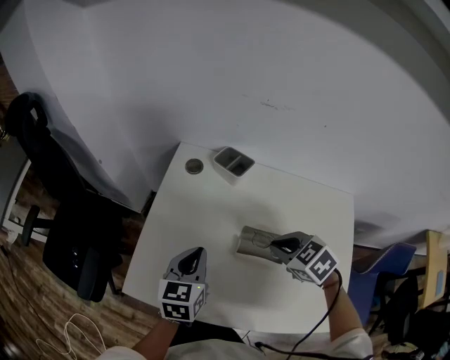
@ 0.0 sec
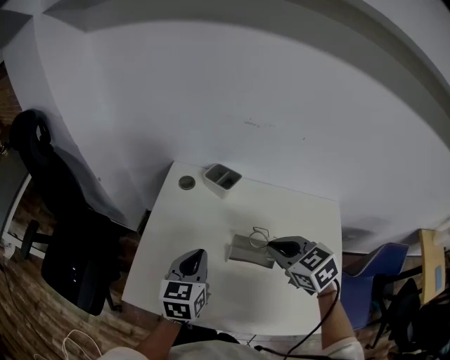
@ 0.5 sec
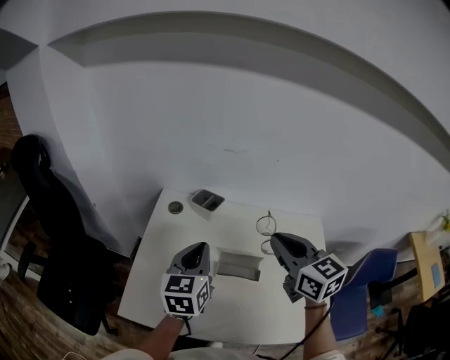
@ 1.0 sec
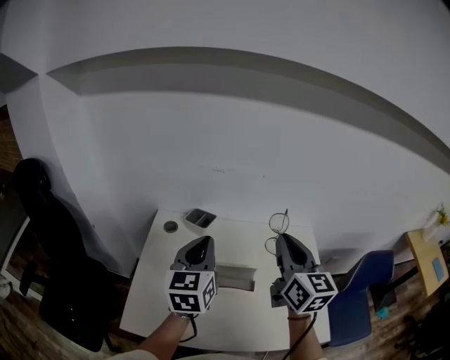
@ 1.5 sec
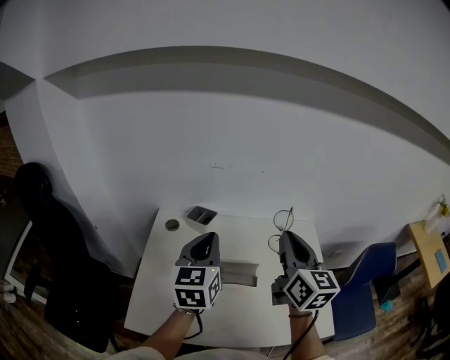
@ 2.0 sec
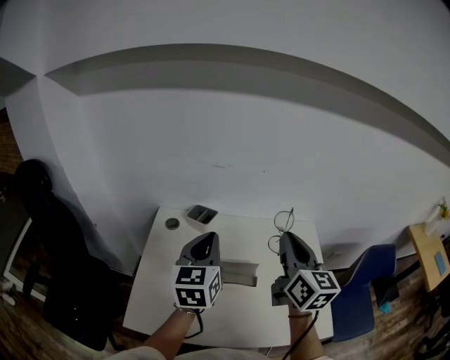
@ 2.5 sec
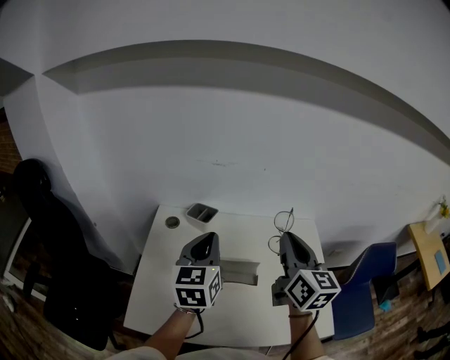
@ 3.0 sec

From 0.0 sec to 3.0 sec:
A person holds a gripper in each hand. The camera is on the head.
From 0.0 sec to 1.5 sec: The grippers both shift upward by some 20 cm. The right gripper points its fingers roughly 60 degrees further upward. The left gripper turns by about 20 degrees.
From 1.5 sec to 3.0 sec: The grippers make only small movements.

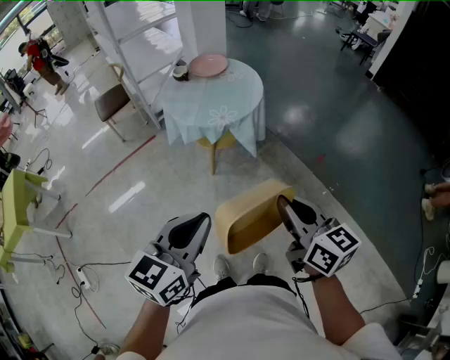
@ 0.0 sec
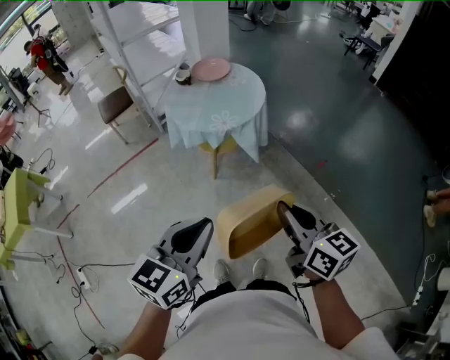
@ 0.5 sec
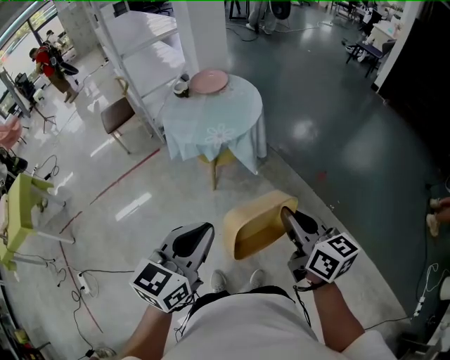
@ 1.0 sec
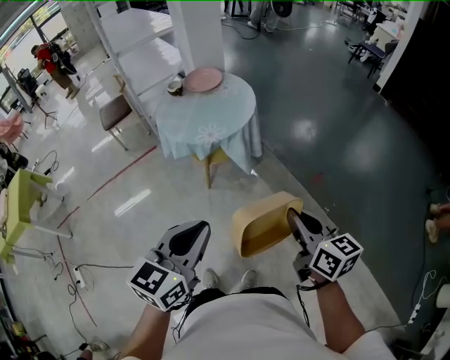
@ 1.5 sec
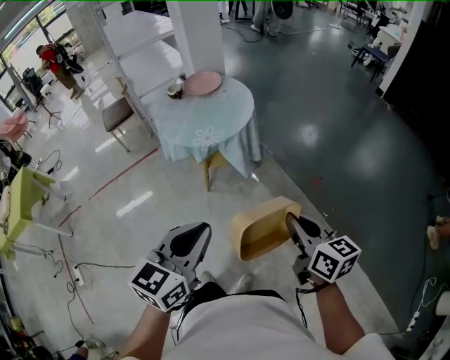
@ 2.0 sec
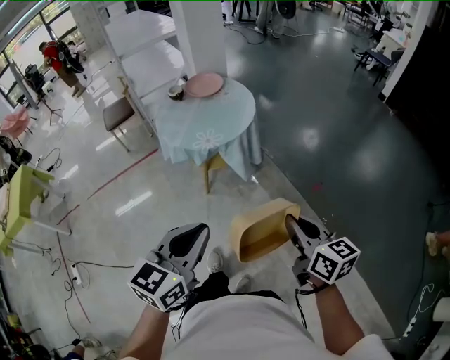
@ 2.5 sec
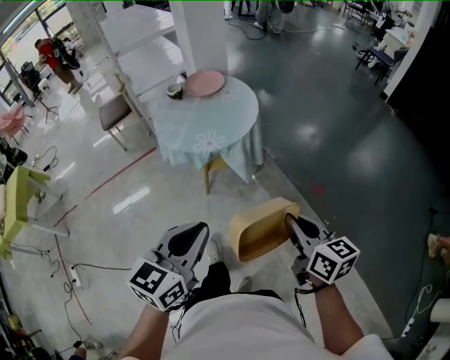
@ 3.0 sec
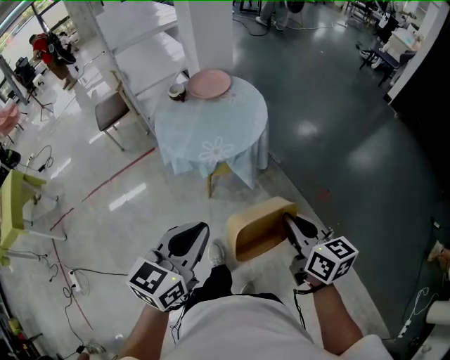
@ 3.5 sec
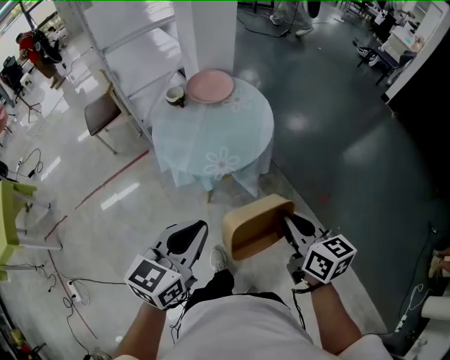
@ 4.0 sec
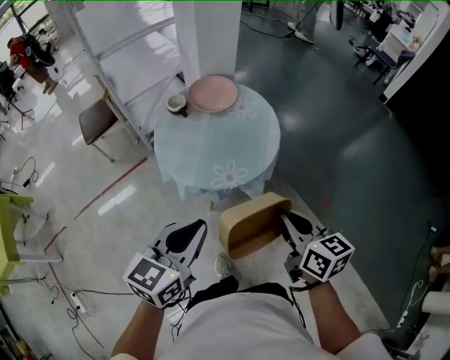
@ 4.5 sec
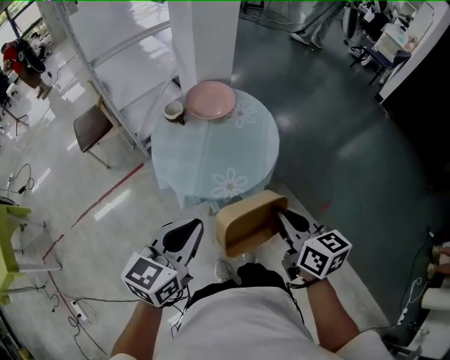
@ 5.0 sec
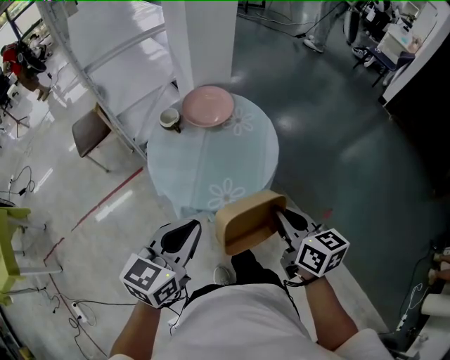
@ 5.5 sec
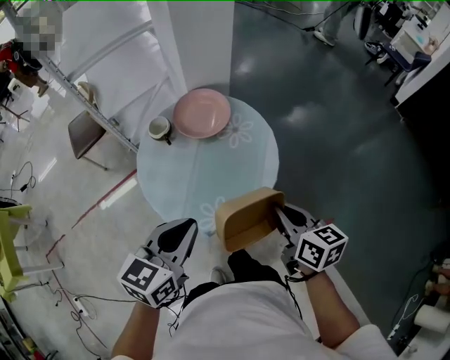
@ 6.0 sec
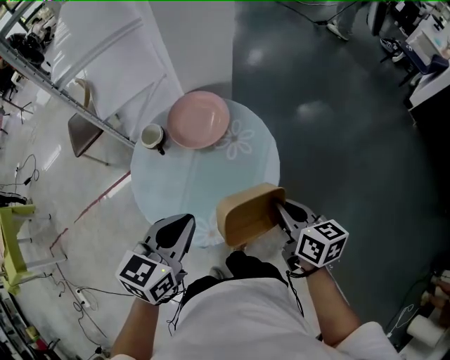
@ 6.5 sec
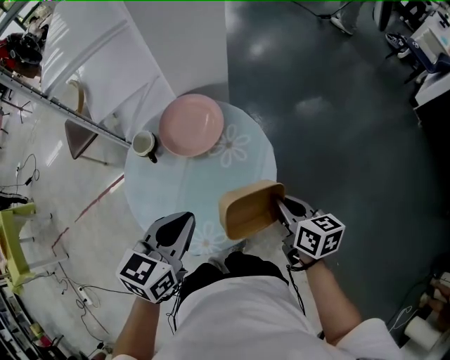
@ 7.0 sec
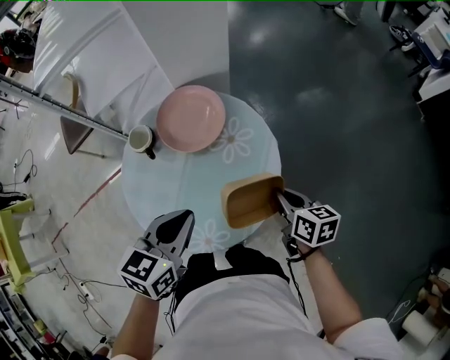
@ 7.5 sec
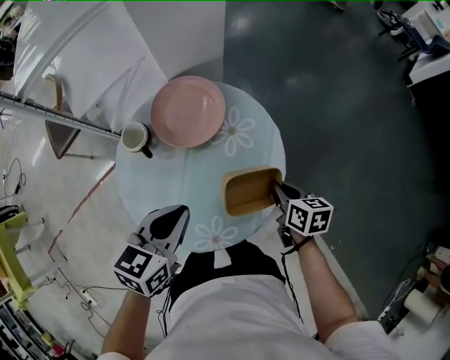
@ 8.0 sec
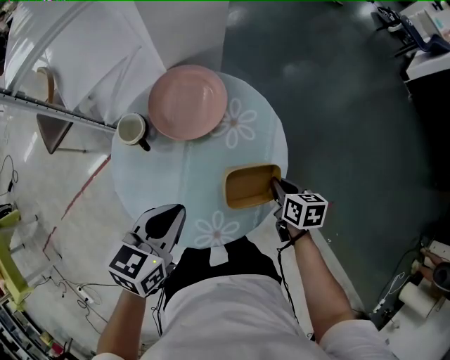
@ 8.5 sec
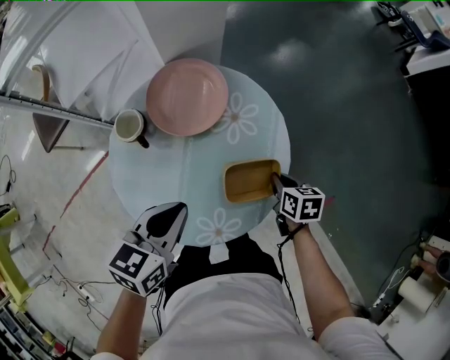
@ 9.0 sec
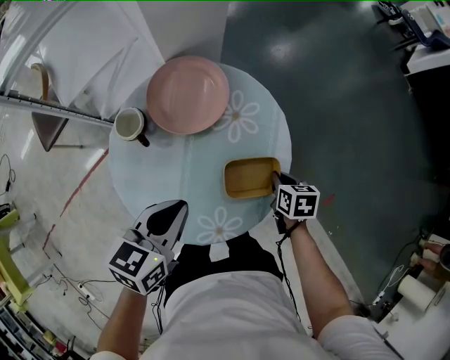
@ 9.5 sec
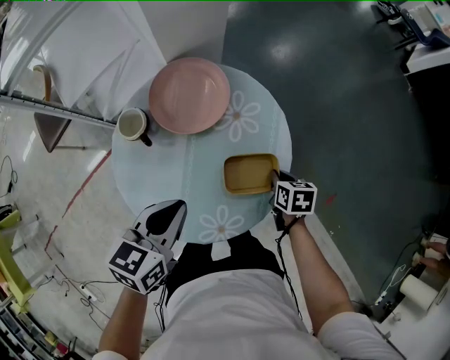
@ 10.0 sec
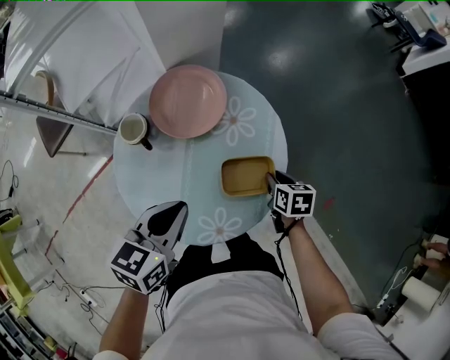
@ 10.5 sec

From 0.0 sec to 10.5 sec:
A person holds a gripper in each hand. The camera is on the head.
From 0.0 sec to 2.0 sec: Both grippers move to the right, some 15 cm.
From 2.0 sec to 4.0 sec: Both grippers move forward and to the left, some 30 cm.
From 4.0 sec to 6.5 sec: The grippers both shift forward by some 35 cm.
From 6.5 sec to 8.5 sec: The left gripper is displaced downward, forward and to the left by roughly 15 cm, while the right gripper heads downward, covering some 20 cm, and rotates some 30 degrees.
From 8.5 sec to 10.5 sec: There are only small adjustments of the grippers.

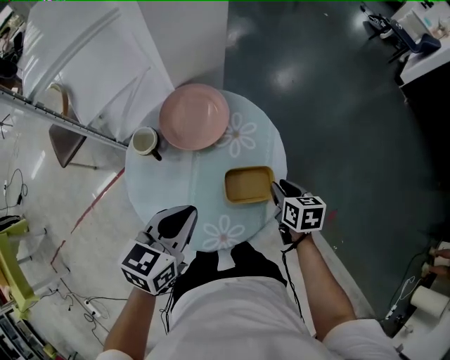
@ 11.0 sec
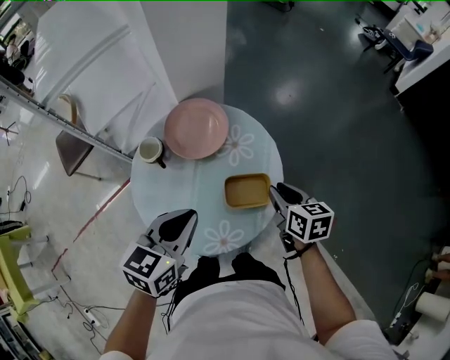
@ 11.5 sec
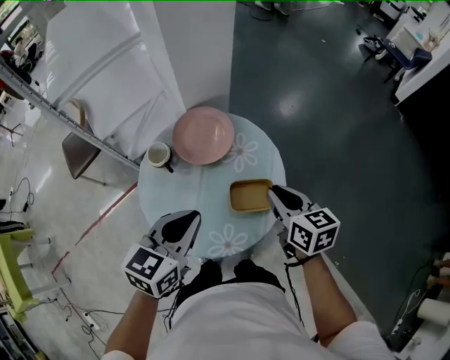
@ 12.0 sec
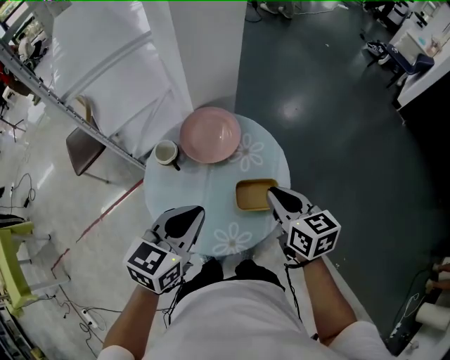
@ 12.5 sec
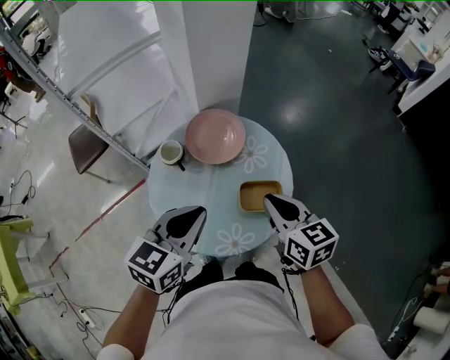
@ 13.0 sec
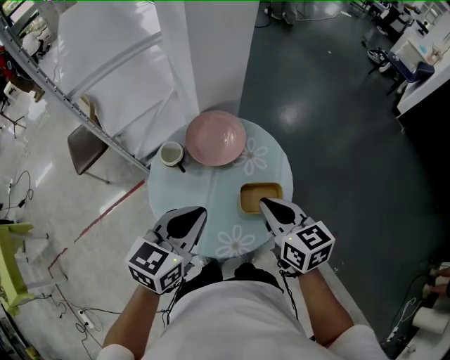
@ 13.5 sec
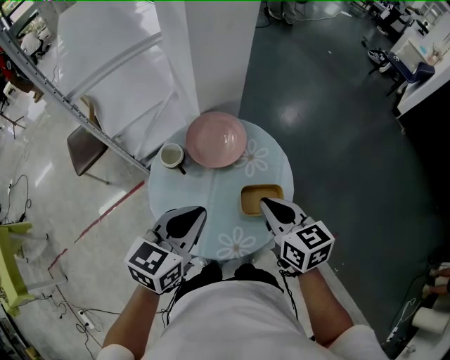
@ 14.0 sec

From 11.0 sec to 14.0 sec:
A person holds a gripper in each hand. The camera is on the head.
From 11.0 sec to 12.5 sec: The left gripper is displaced upward by some 5 cm. The right gripper goes approximately 20 cm upward and to the left, and rotates about 30 degrees.
From 12.5 sec to 14.0 sec: The right gripper moves some 5 cm.

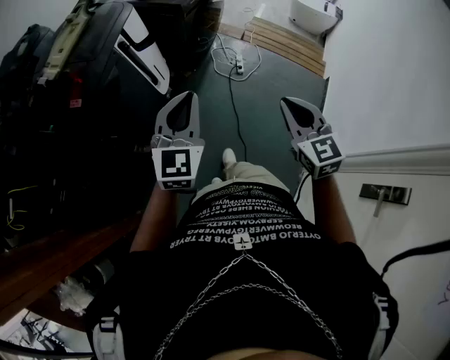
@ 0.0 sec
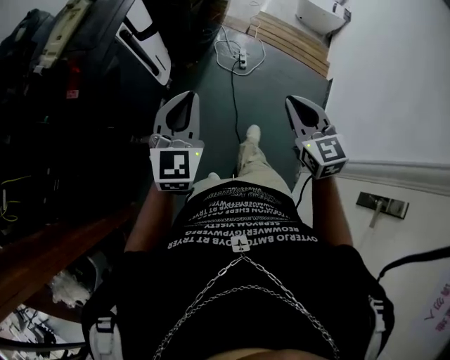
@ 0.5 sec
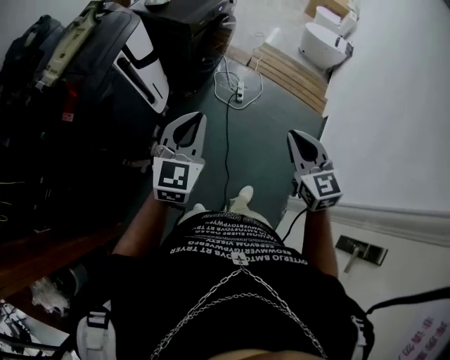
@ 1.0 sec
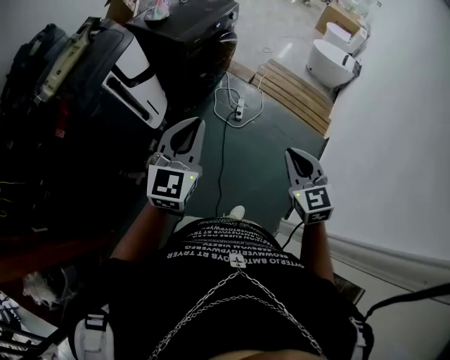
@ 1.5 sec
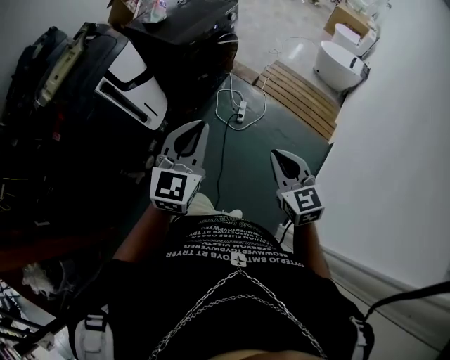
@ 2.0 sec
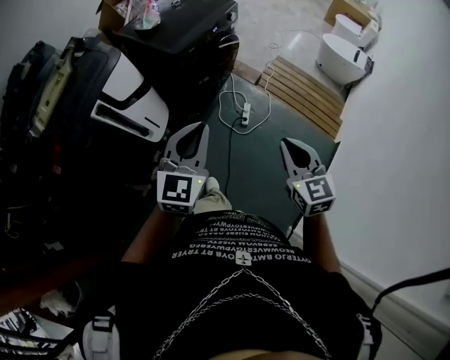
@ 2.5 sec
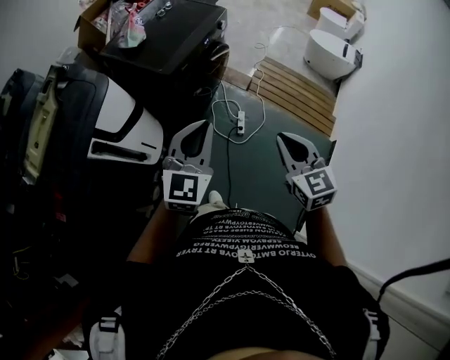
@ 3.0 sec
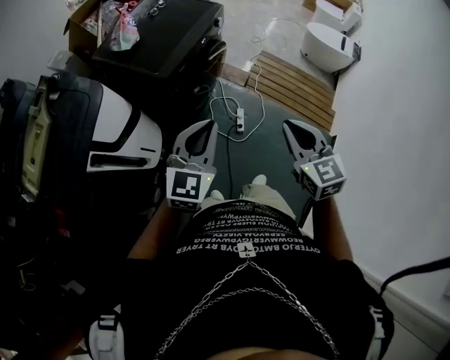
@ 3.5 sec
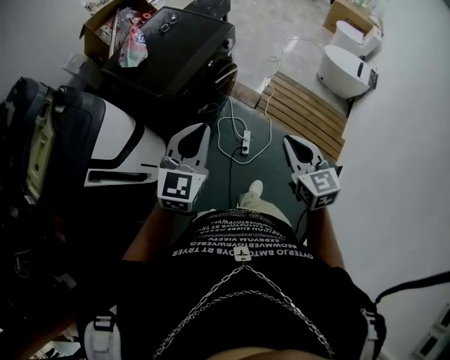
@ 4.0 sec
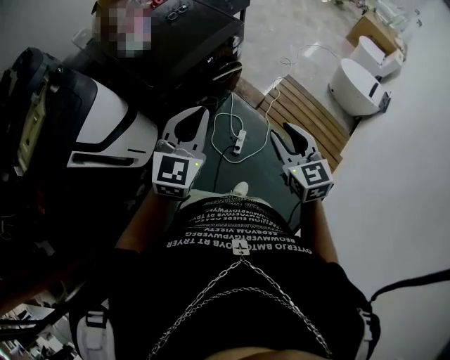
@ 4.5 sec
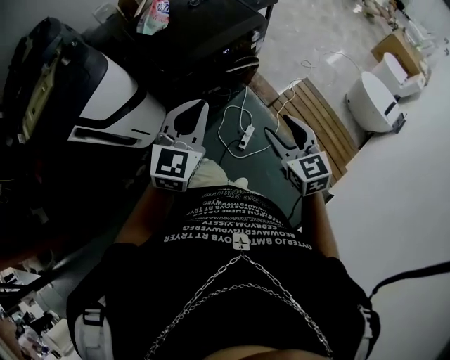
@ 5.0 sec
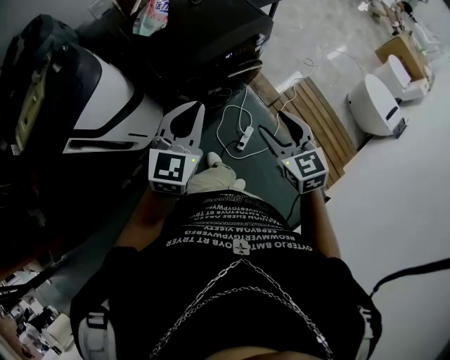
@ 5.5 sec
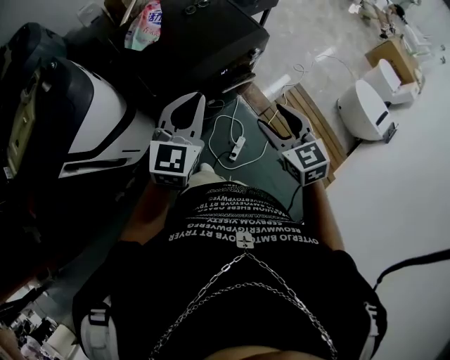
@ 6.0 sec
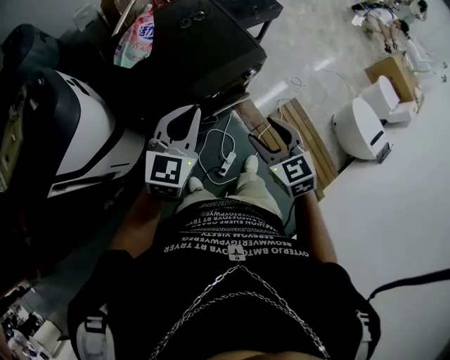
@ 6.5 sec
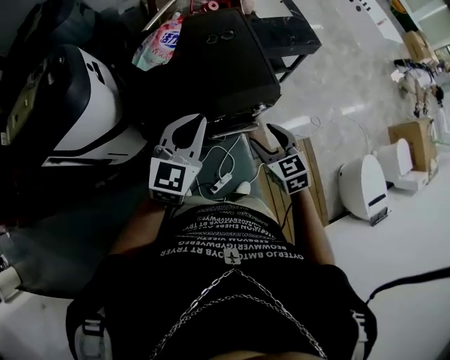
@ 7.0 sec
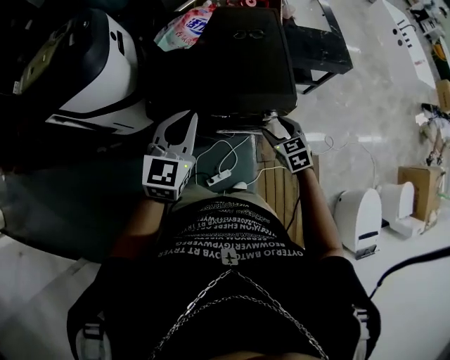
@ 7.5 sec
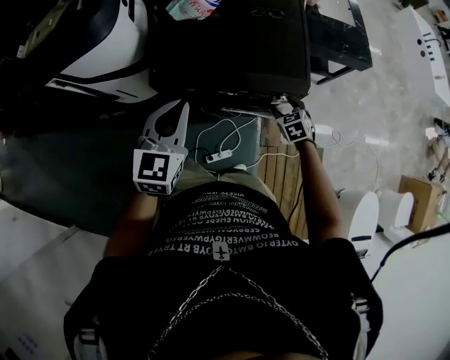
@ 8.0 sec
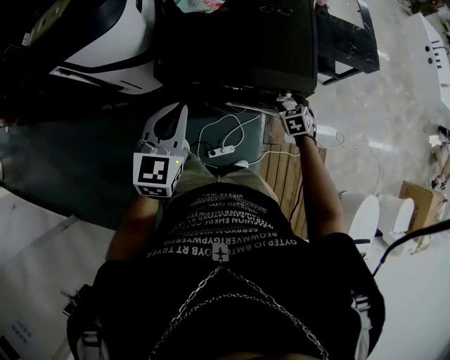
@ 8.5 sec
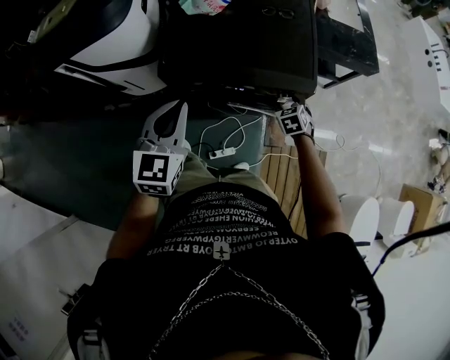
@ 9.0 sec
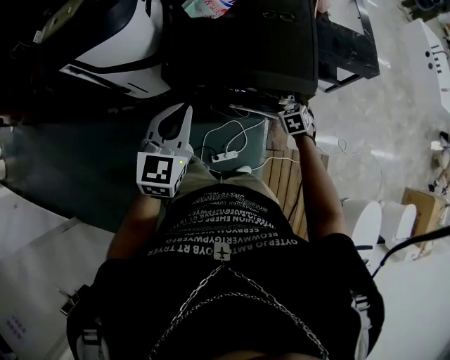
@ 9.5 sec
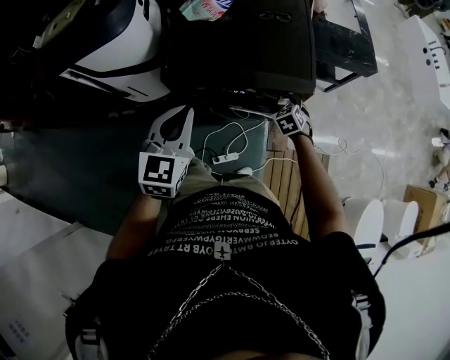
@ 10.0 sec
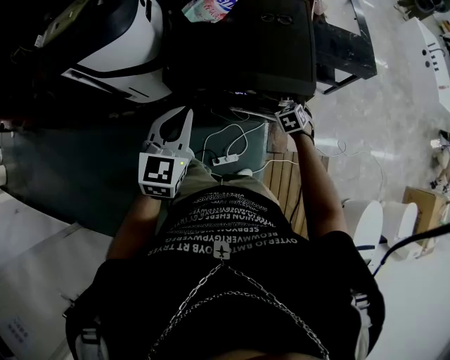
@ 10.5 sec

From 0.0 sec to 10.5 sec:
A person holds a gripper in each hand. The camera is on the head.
From 0.0 sec to 2.0 sec: Both grippers travel together to the right and forward, roughly 30 cm.
From 2.0 sec to 4.0 sec: The two grippers travel together, forward, about 40 cm.
From 4.0 sec to 6.5 sec: The right gripper ends up approximately 40 cm from where it was, turns by roughly 40 degrees, and opens up; the left gripper shifts by about 35 cm, and swivels roughly 20 degrees.
From 6.5 sec to 8.5 sec: The right gripper heads downward, covering about 30 cm, and swivels about 30 degrees. Meanwhile the left gripper moves roughly 5 cm, and turns by approximately 50 degrees.
From 8.5 sec to 10.5 sec: There are only small adjustments of the grippers.
